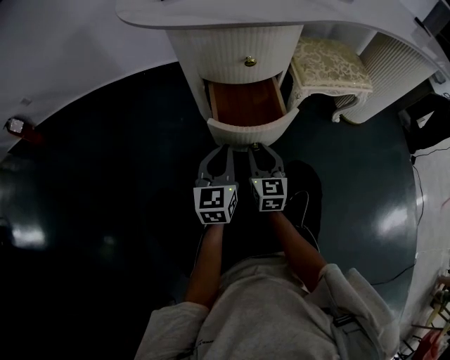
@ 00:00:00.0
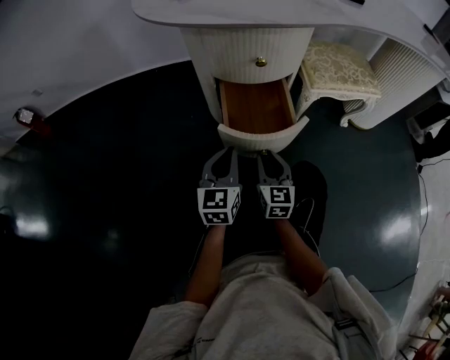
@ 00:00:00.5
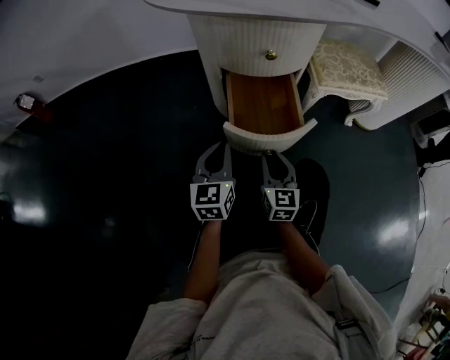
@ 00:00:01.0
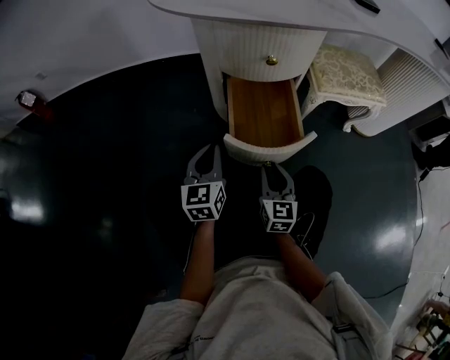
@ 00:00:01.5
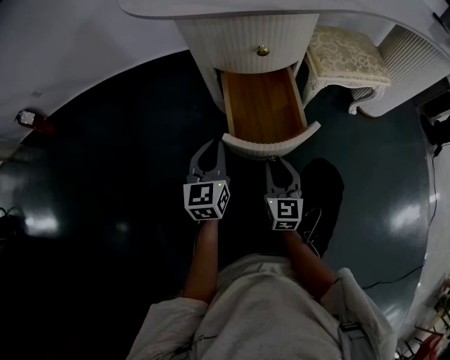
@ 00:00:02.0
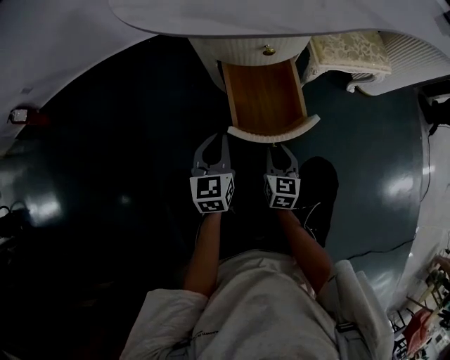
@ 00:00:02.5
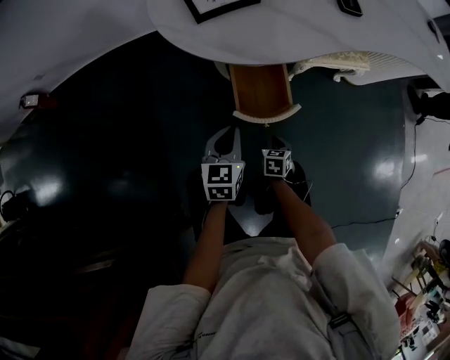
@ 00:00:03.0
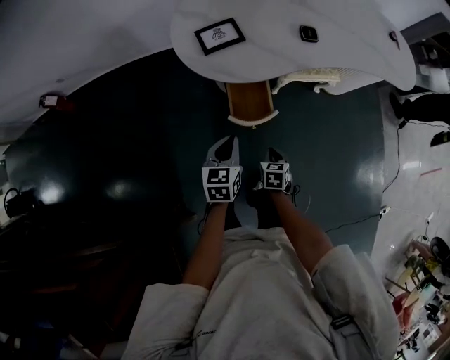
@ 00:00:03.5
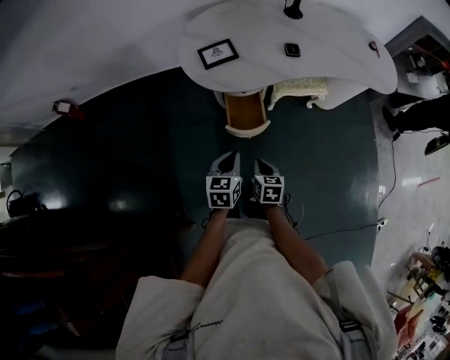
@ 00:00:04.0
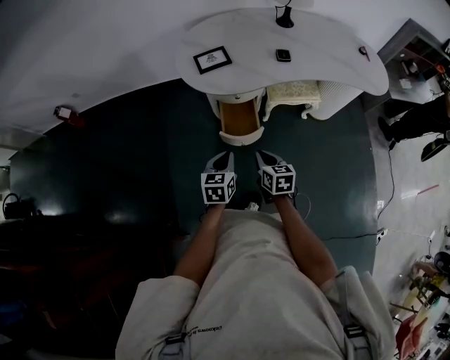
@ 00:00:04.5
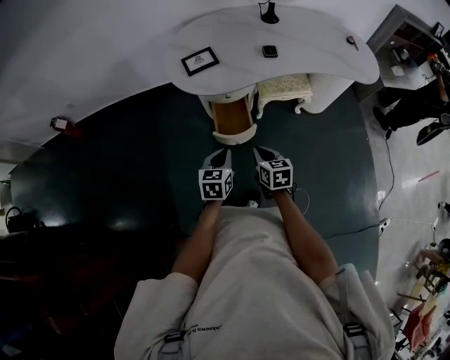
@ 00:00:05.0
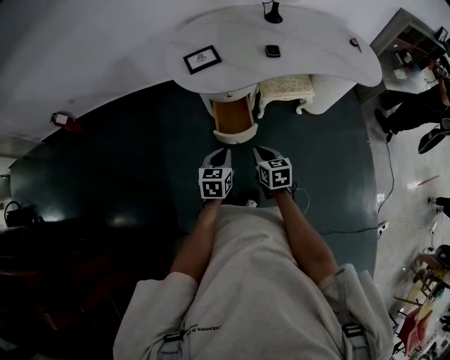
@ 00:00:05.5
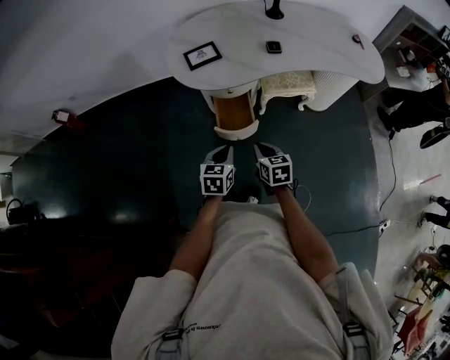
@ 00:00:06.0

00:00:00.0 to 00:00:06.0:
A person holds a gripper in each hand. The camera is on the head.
00:00:00.0 to 00:00:02.0: The left gripper is displaced to the left by roughly 5 cm. Meanwhile the right gripper heads backward, covering some 5 cm.
00:00:02.0 to 00:00:04.0: Both grippers move upward, roughly 40 cm. The left gripper turns by roughly 20 degrees. The right gripper turns by some 30 degrees, and closes.
00:00:04.0 to 00:00:06.0: The right gripper shifts approximately 5 cm to the right, while the left gripper changes place by roughly 5 cm.

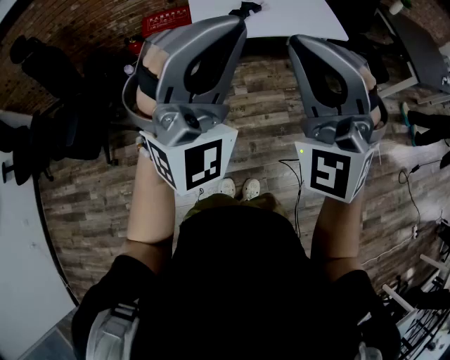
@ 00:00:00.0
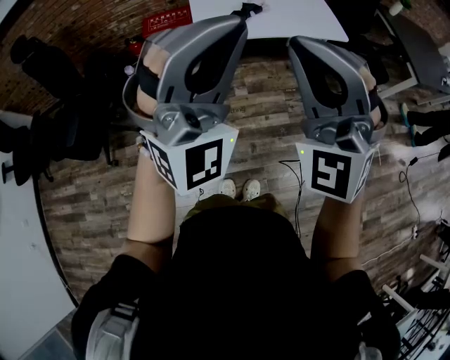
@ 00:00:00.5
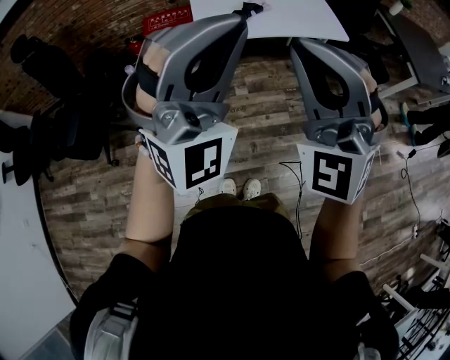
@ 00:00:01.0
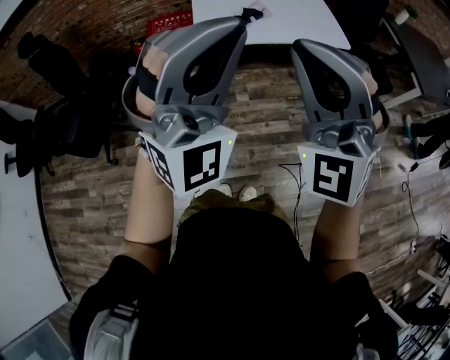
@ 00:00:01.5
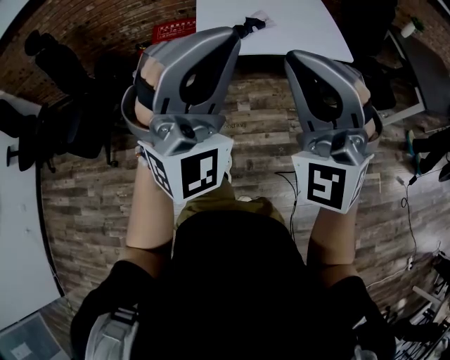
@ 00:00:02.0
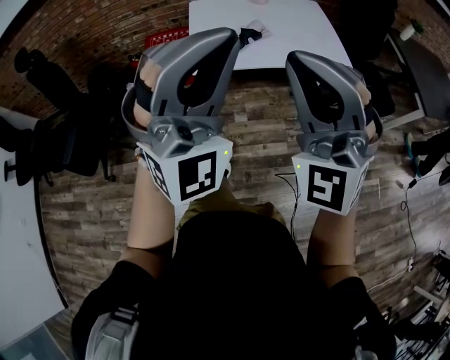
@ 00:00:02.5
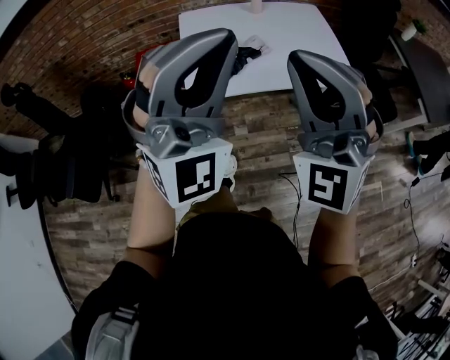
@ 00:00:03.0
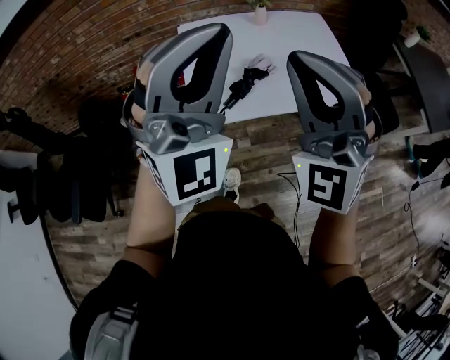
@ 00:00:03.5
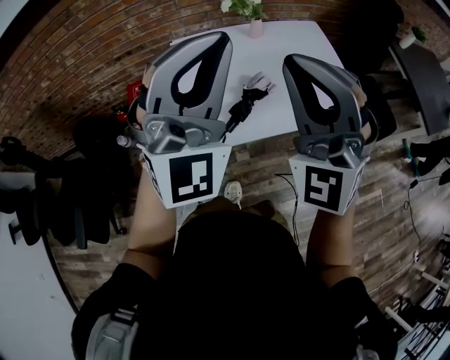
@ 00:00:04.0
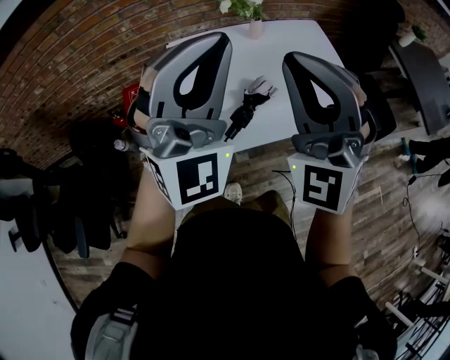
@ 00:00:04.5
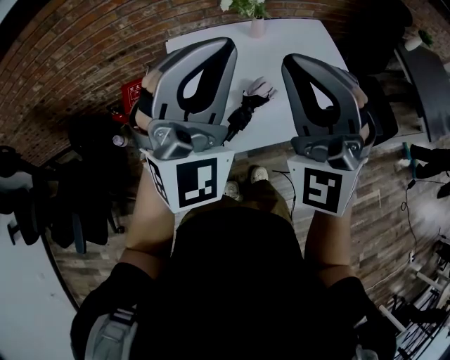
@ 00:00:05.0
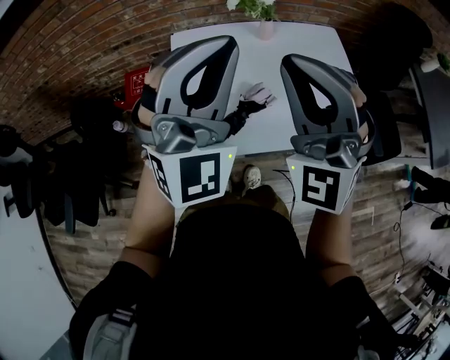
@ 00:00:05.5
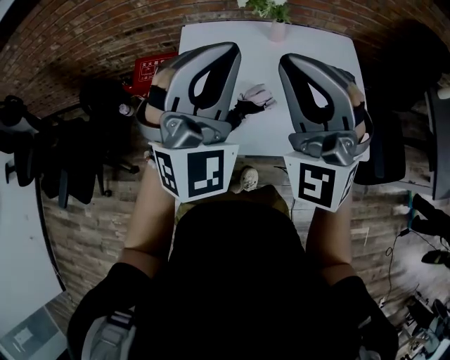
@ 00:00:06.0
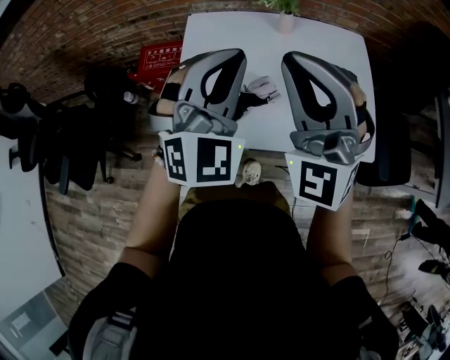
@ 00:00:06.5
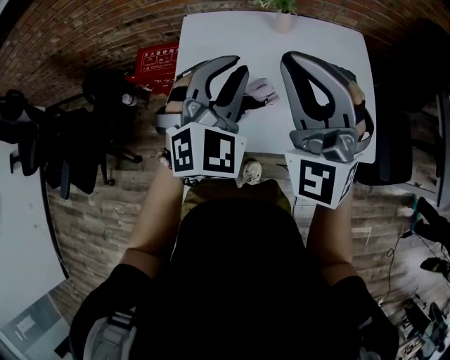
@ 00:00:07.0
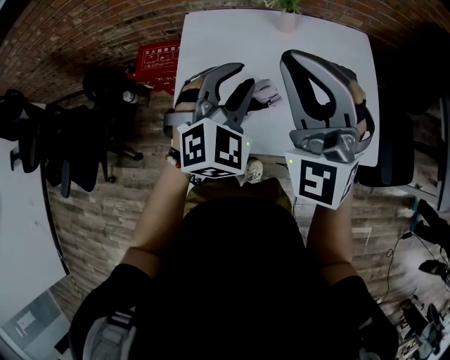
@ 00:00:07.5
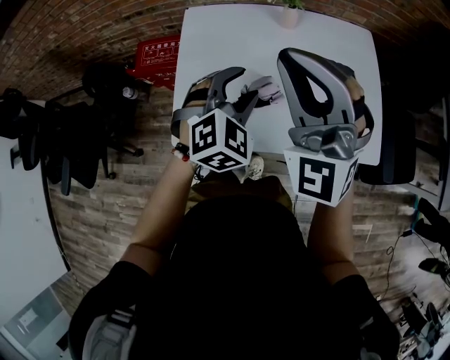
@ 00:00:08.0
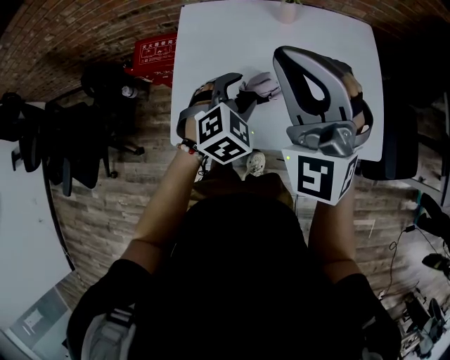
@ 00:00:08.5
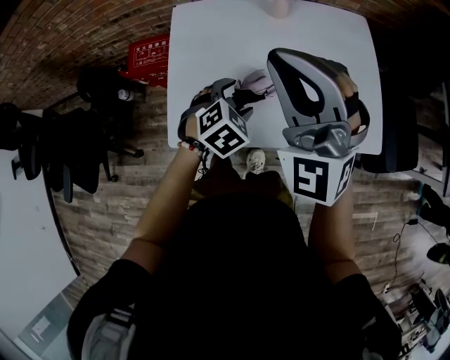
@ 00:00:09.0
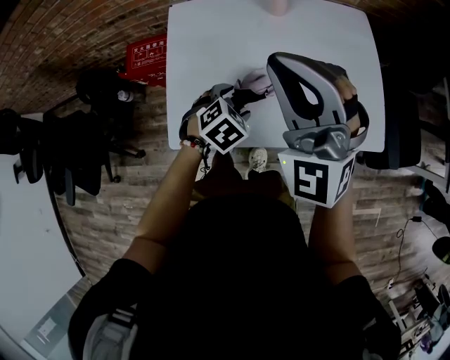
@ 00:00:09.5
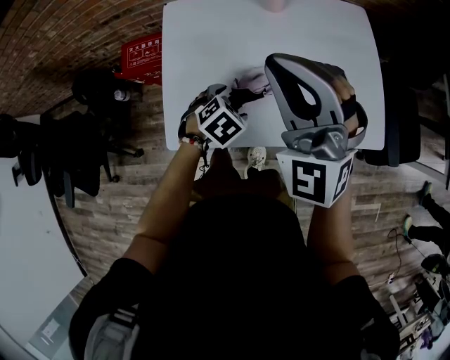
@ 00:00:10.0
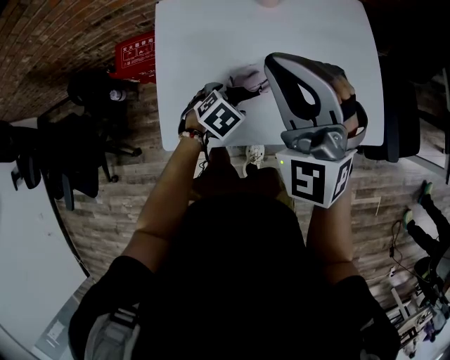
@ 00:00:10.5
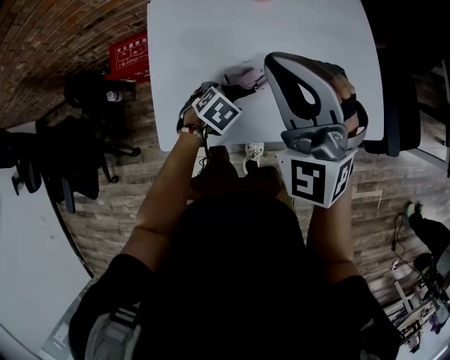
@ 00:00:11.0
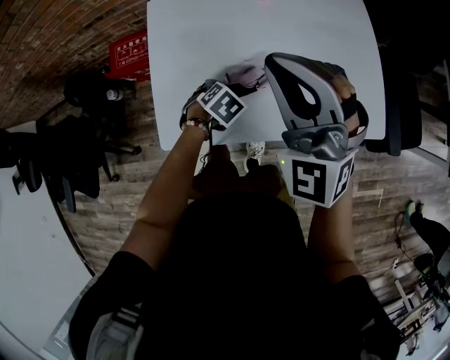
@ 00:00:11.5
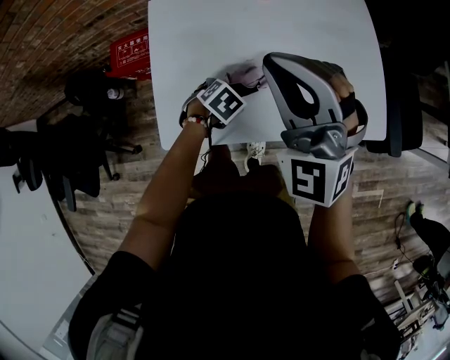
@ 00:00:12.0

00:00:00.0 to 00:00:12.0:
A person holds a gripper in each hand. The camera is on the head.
00:00:00.0 to 00:00:02.0: The right gripper travels to the right by about 5 cm; the left gripper moves approximately 5 cm.
00:00:02.0 to 00:00:04.0: The two grippers go roughly 40 cm forward.
00:00:04.0 to 00:00:06.0: The left gripper goes about 15 cm forward, downward and to the right, and changes its angle by about 20 degrees. Meanwhile the right gripper moves forward, to the right and downward, roughly 15 cm.
00:00:06.0 to 00:00:08.0: The right gripper shifts by approximately 5 cm. The left gripper is displaced downward by about 20 cm, tilts its fingers about 40 degrees downward, and opens.
00:00:08.0 to 00:00:10.0: The right gripper shifts by roughly 5 cm; the left gripper moves downward, some 20 cm, points its fingers some 30 degrees further downward, and opens its fingers.
00:00:10.0 to 00:00:12.0: The left gripper shifts approximately 5 cm downward.

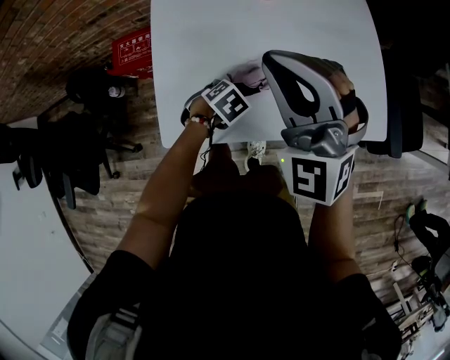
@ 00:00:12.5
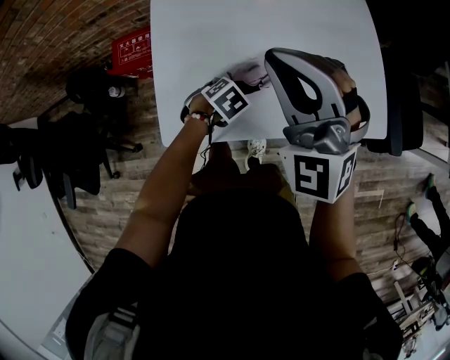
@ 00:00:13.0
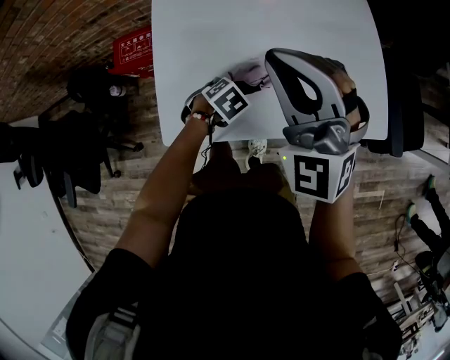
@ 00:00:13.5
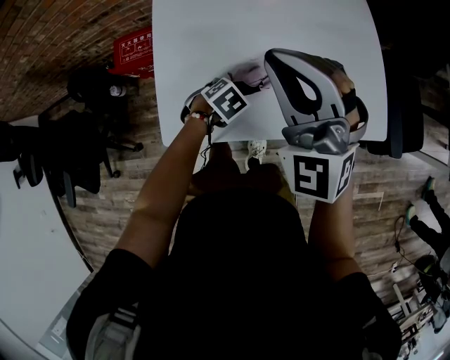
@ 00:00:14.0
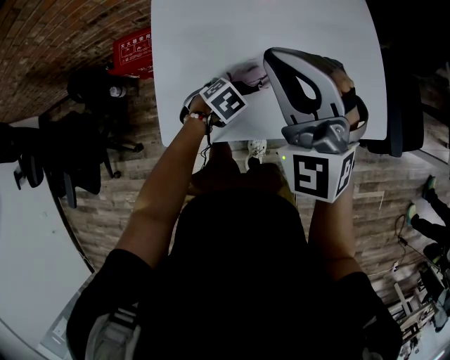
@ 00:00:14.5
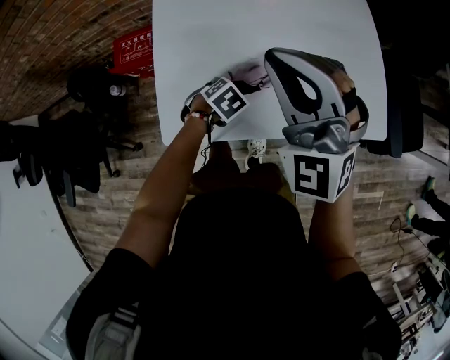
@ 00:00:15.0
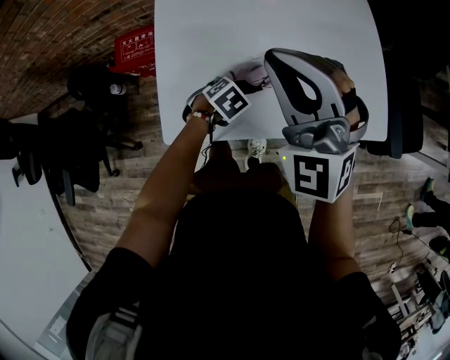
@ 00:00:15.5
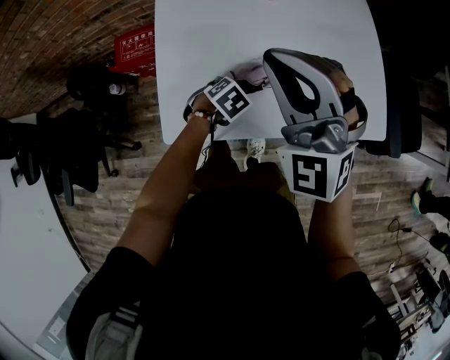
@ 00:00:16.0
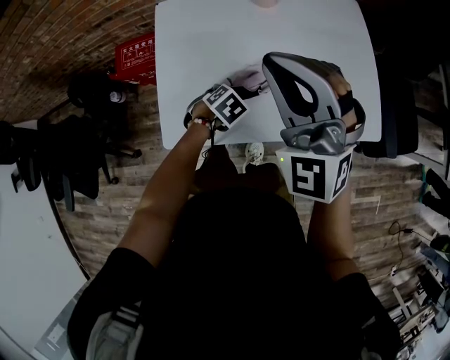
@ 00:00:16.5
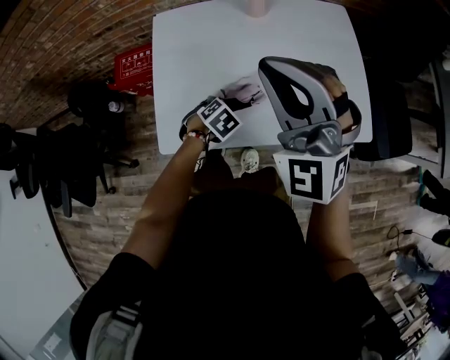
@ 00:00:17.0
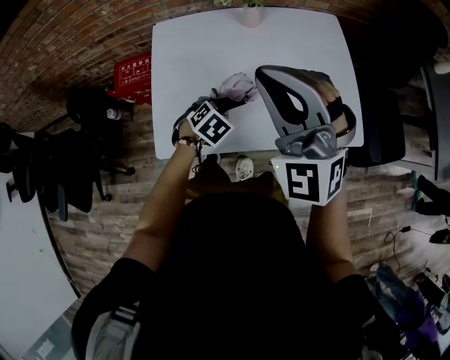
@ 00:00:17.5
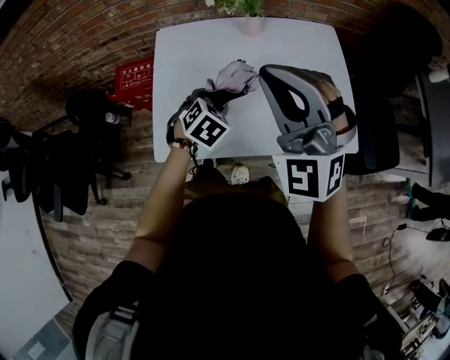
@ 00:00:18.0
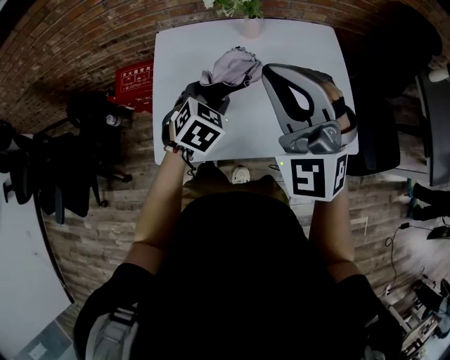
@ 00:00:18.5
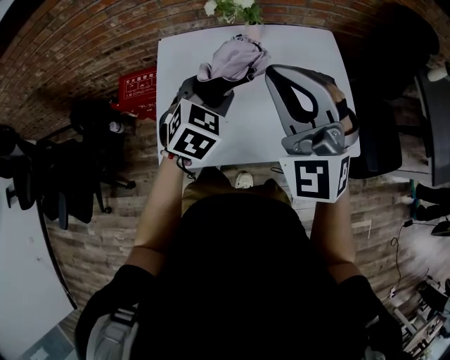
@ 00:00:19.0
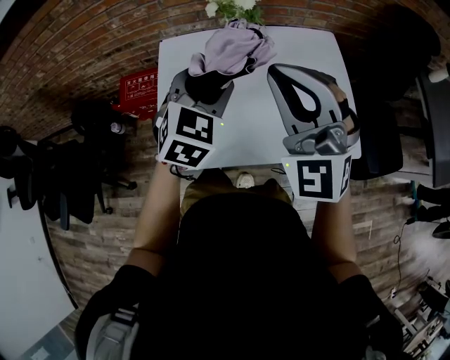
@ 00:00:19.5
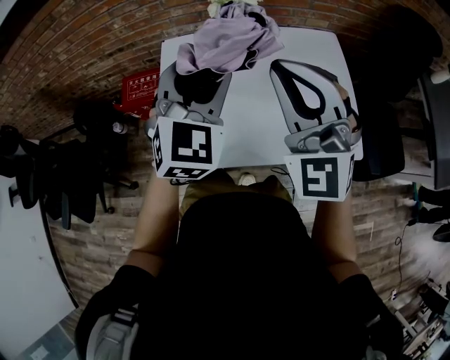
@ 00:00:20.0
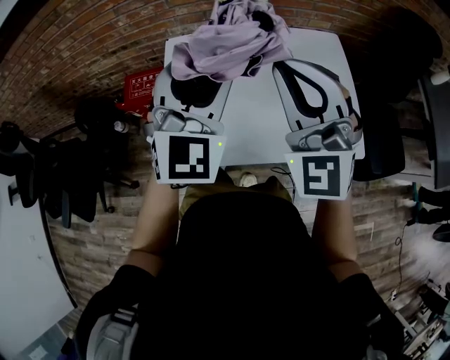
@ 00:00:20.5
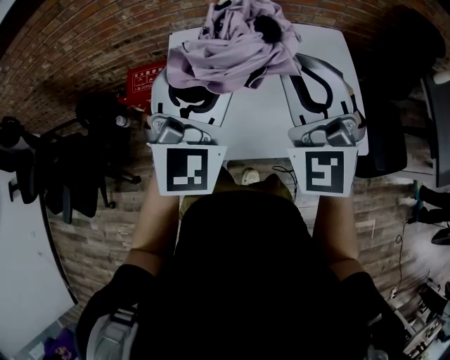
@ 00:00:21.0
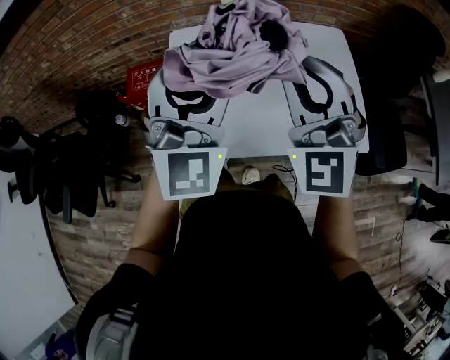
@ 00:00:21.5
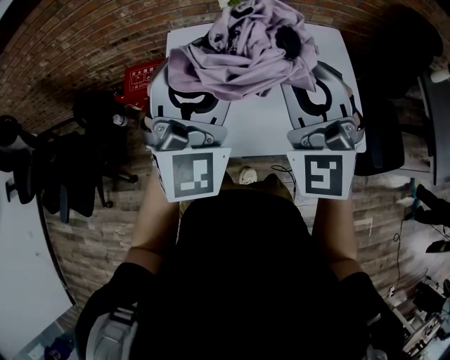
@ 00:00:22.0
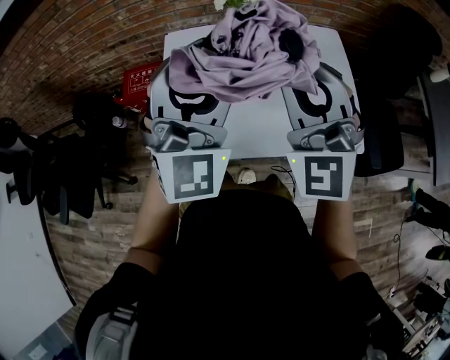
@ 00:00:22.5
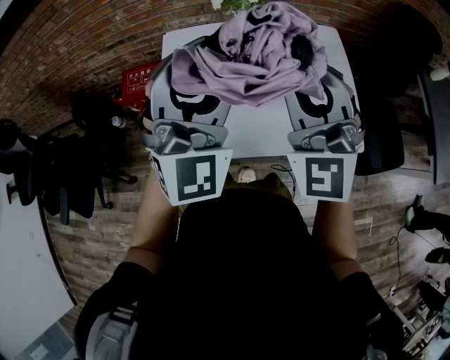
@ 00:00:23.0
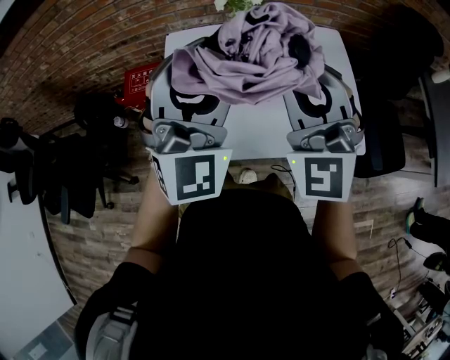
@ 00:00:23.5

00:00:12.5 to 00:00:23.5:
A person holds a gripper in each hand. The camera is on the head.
00:00:12.5 to 00:00:16.0: Both grippers stay about where they are.
00:00:16.0 to 00:00:18.0: The left gripper goes some 15 cm upward, and swivels roughly 30 degrees. Meanwhile the right gripper heads upward, covering approximately 5 cm.
00:00:18.0 to 00:00:20.0: The left gripper moves upward, some 25 cm, and tips its fingers upward by some 40 degrees.
00:00:20.0 to 00:00:21.5: The left gripper moves backward, approximately 5 cm, and changes its angle by roughly 20 degrees.
00:00:21.5 to 00:00:23.5: The grippers move only a little.
